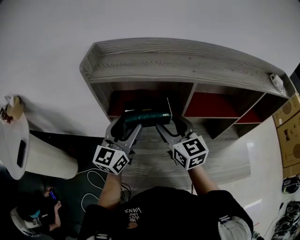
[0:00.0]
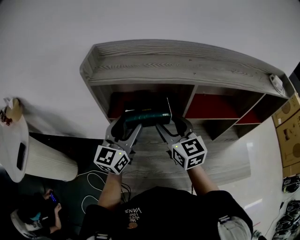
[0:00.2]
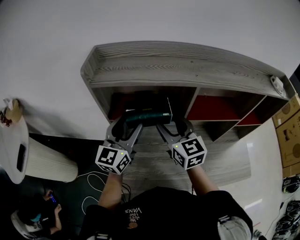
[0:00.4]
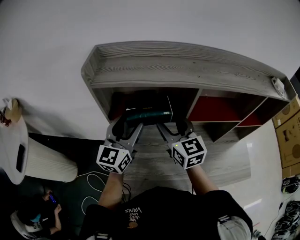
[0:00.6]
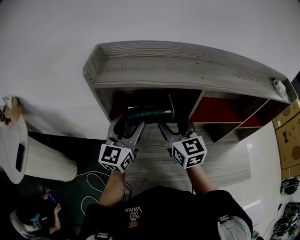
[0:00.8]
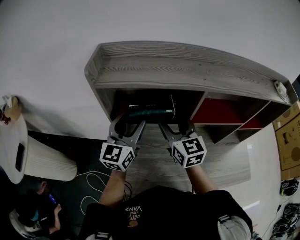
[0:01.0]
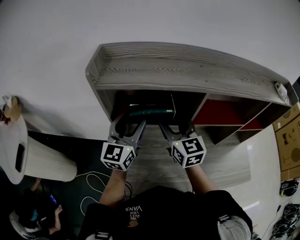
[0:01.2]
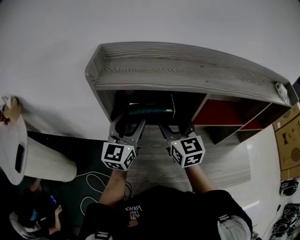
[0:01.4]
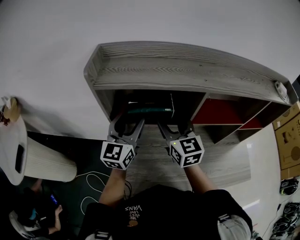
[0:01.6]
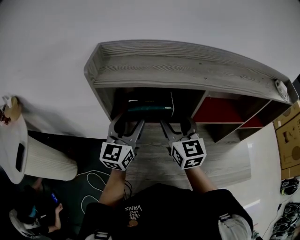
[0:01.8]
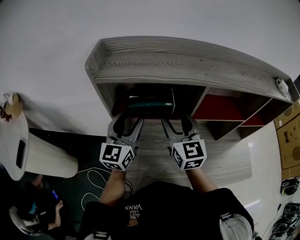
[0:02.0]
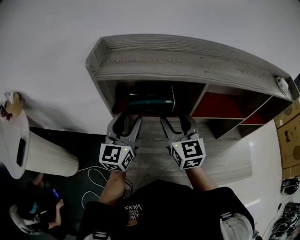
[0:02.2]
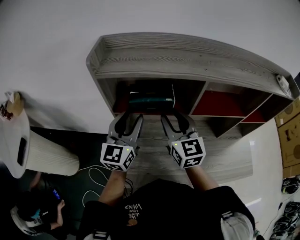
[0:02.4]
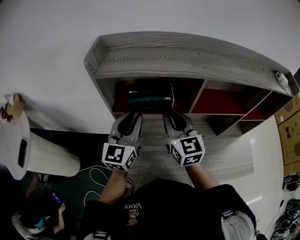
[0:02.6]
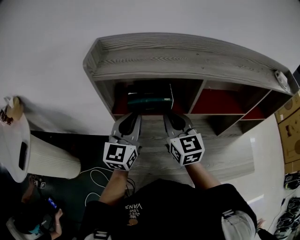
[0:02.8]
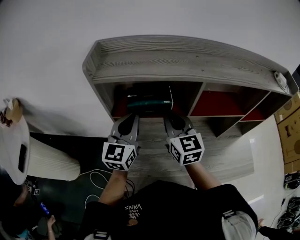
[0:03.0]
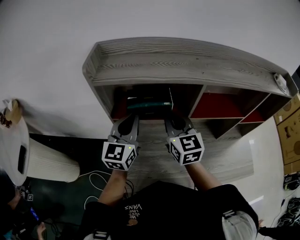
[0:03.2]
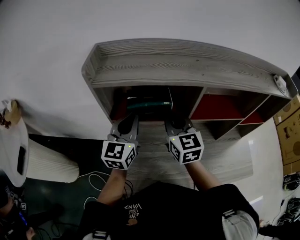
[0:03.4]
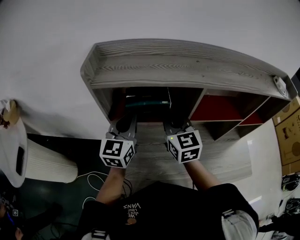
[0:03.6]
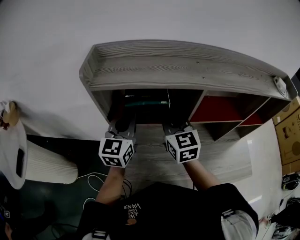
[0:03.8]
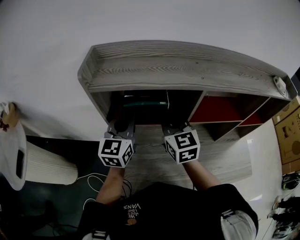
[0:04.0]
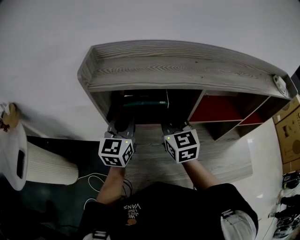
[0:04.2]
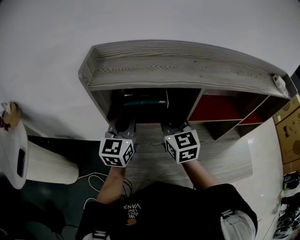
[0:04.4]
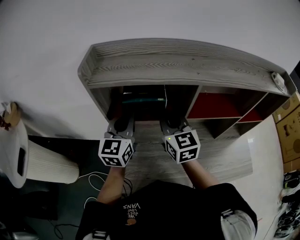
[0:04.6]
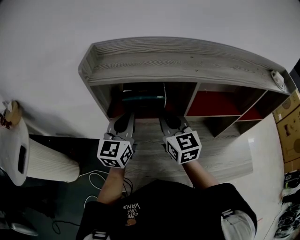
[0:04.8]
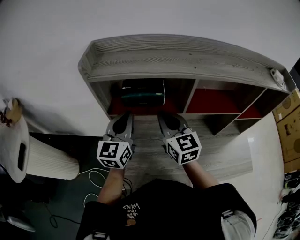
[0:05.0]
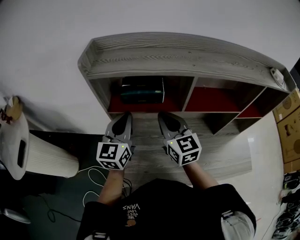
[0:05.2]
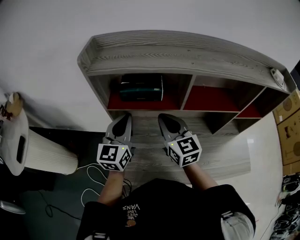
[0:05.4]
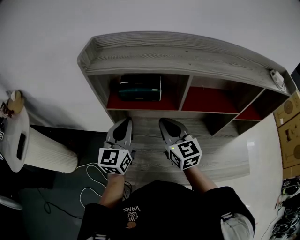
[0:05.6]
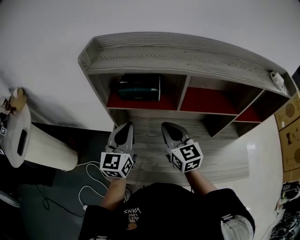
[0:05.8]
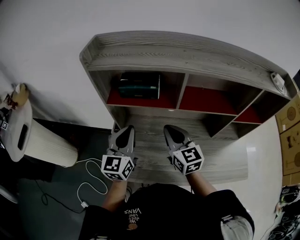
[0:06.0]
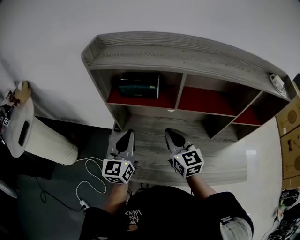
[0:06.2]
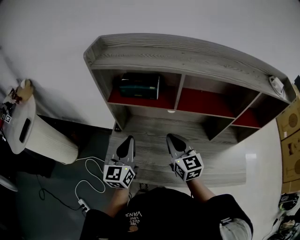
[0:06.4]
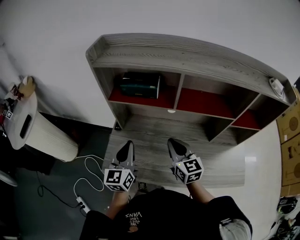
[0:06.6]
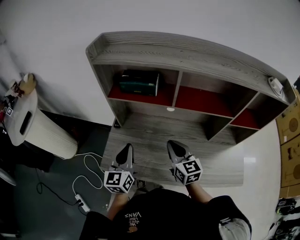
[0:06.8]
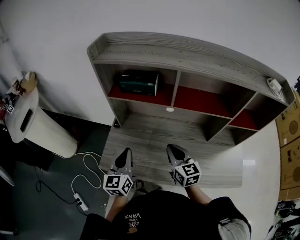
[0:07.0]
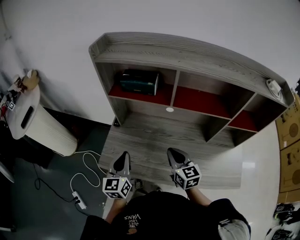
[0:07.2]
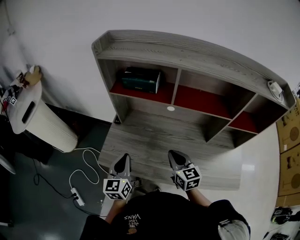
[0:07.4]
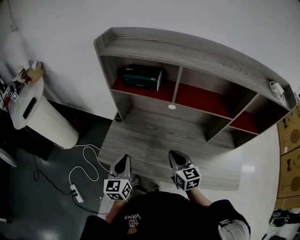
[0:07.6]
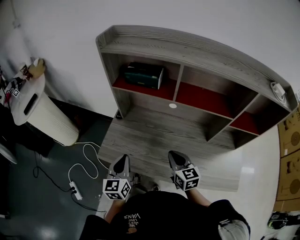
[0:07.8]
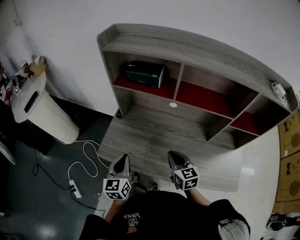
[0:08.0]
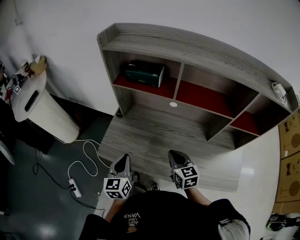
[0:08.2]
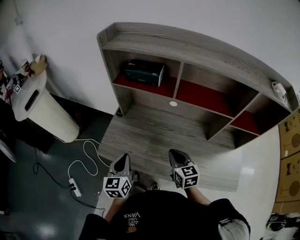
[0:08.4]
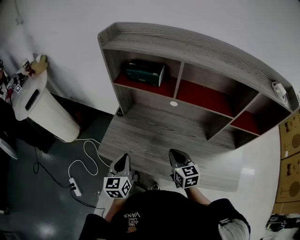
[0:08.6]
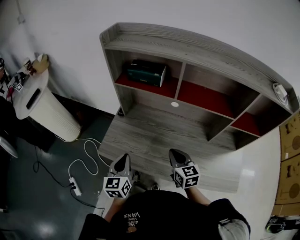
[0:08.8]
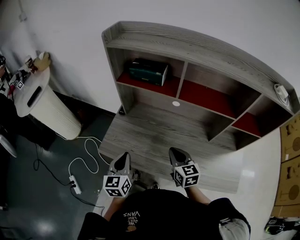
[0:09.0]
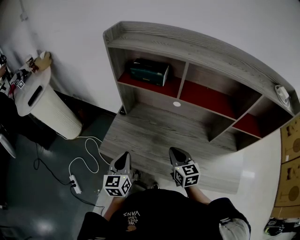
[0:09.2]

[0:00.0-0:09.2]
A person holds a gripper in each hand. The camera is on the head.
0.0 to 1.6 s: The right gripper ends up about 5 cm from where it was, while the left gripper is displaced forward by about 5 cm.
1.6 to 3.0 s: The right gripper closes up; the left gripper closes its fingers.
3.0 to 4.6 s: There are only small adjustments of the grippers.
4.6 to 6.2 s: The right gripper moves backward, downward and to the right, about 15 cm, while the left gripper travels backward by roughly 15 cm.
6.2 to 7.6 s: Both grippers move backward and downward, some 15 cm.
7.6 to 9.2 s: The grippers stay close to where they were, moving slightly.

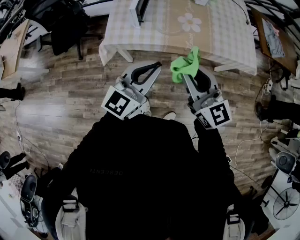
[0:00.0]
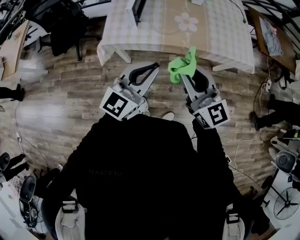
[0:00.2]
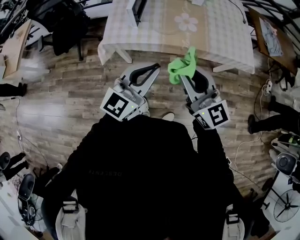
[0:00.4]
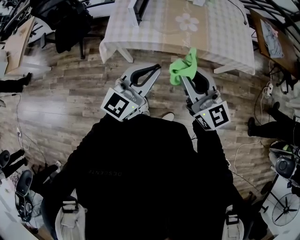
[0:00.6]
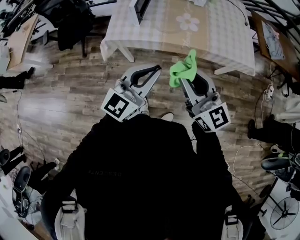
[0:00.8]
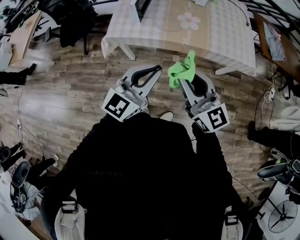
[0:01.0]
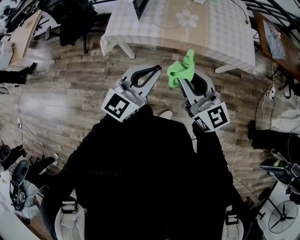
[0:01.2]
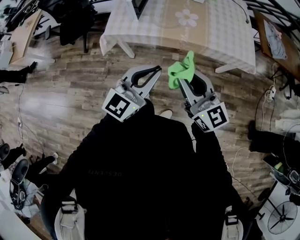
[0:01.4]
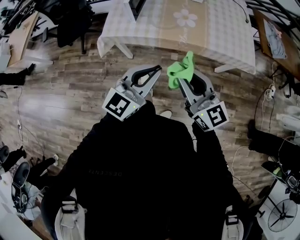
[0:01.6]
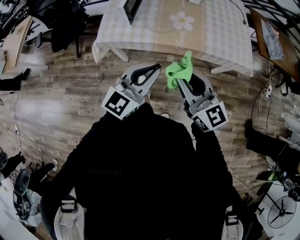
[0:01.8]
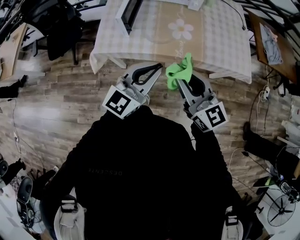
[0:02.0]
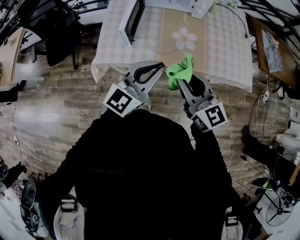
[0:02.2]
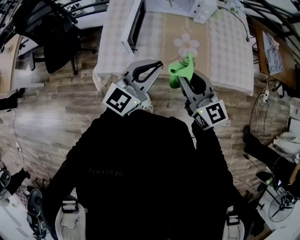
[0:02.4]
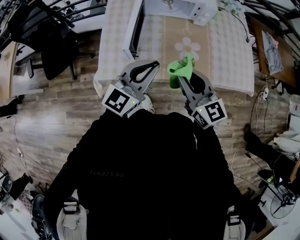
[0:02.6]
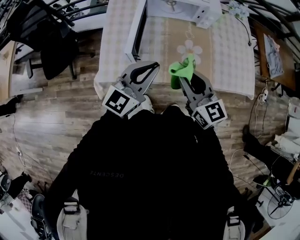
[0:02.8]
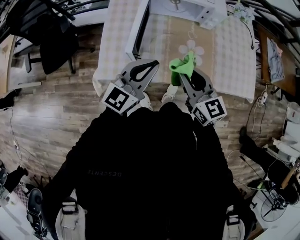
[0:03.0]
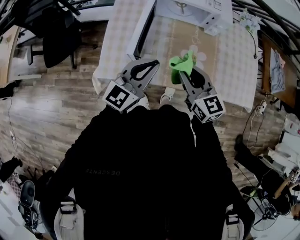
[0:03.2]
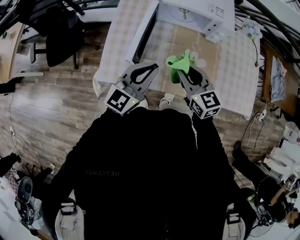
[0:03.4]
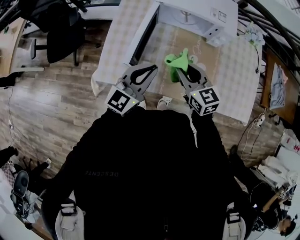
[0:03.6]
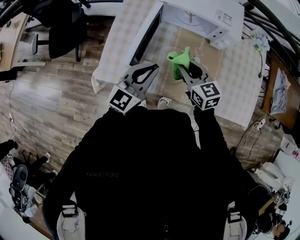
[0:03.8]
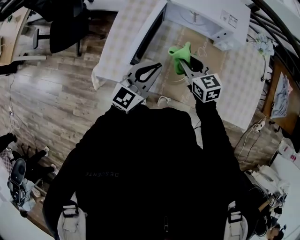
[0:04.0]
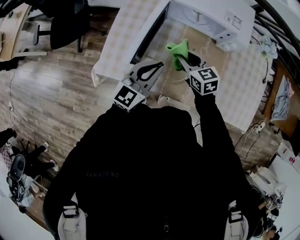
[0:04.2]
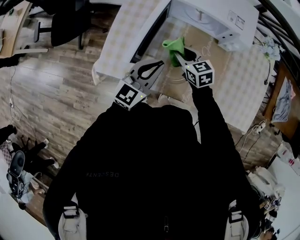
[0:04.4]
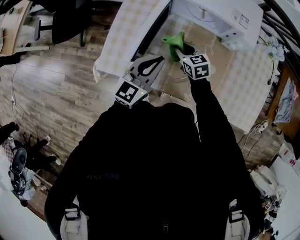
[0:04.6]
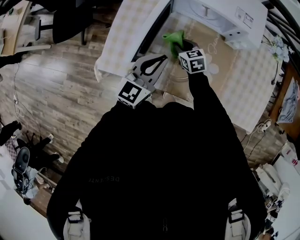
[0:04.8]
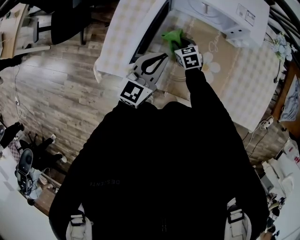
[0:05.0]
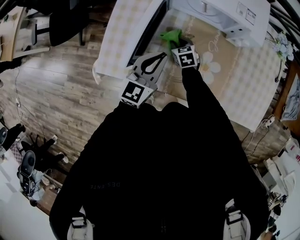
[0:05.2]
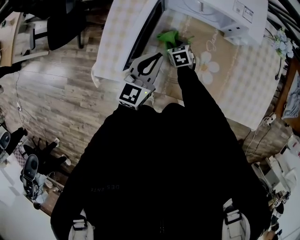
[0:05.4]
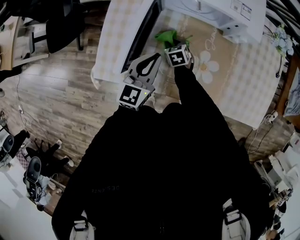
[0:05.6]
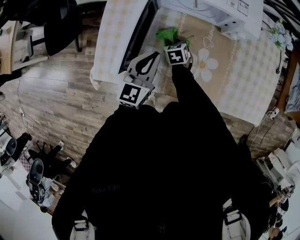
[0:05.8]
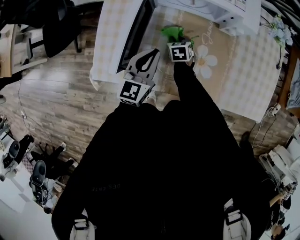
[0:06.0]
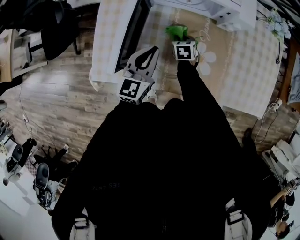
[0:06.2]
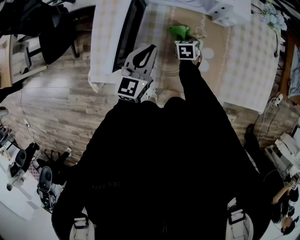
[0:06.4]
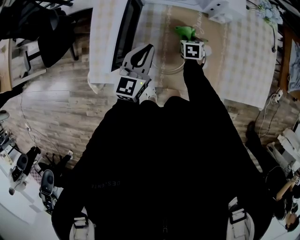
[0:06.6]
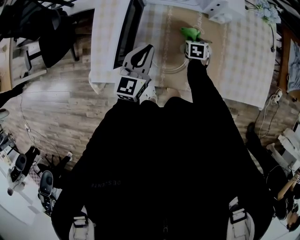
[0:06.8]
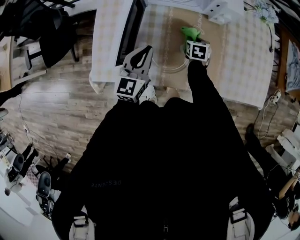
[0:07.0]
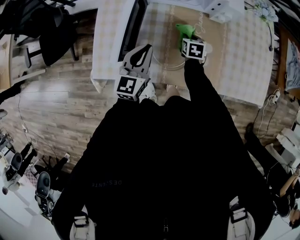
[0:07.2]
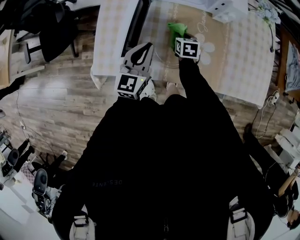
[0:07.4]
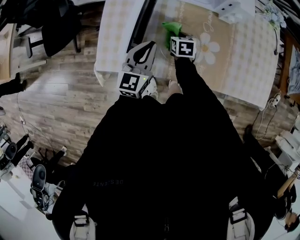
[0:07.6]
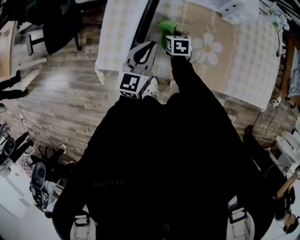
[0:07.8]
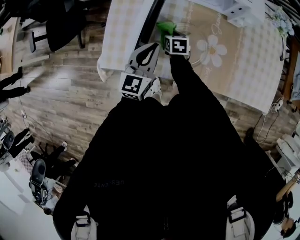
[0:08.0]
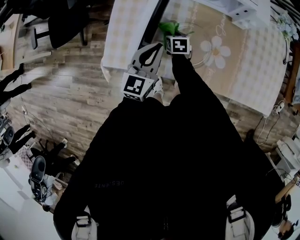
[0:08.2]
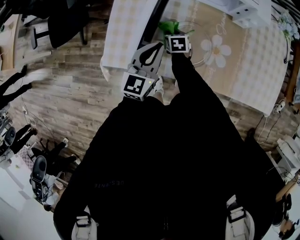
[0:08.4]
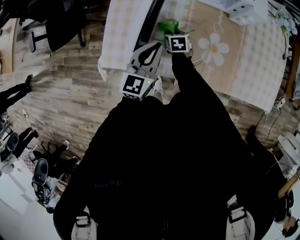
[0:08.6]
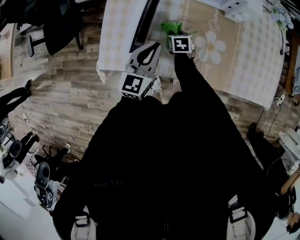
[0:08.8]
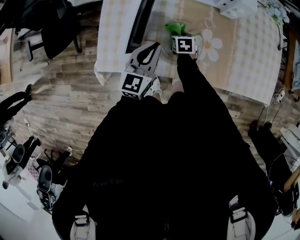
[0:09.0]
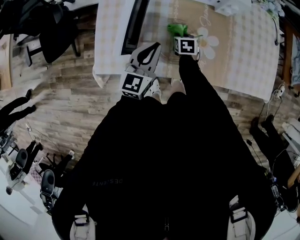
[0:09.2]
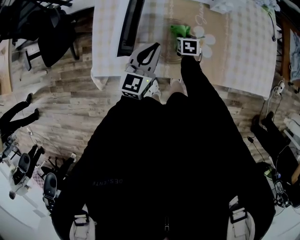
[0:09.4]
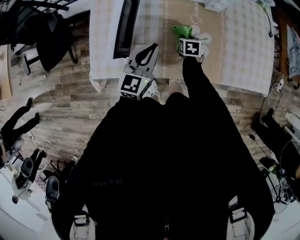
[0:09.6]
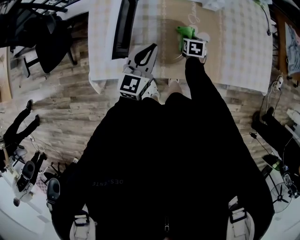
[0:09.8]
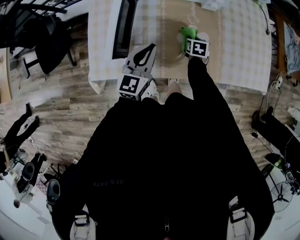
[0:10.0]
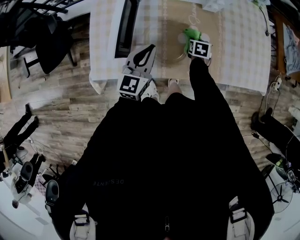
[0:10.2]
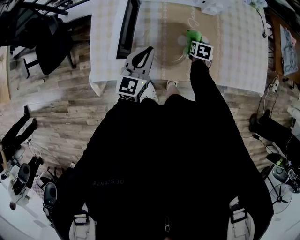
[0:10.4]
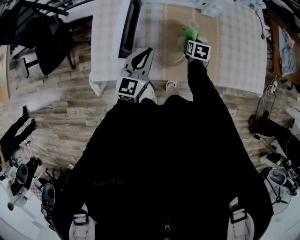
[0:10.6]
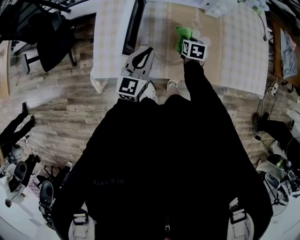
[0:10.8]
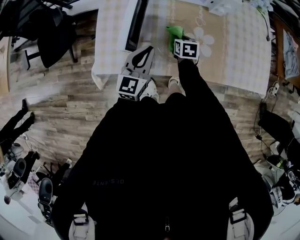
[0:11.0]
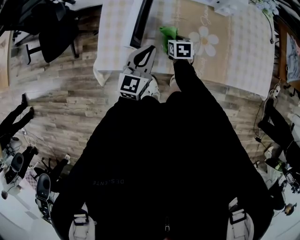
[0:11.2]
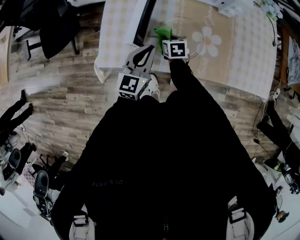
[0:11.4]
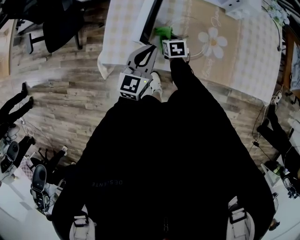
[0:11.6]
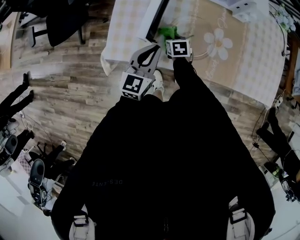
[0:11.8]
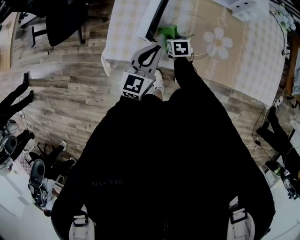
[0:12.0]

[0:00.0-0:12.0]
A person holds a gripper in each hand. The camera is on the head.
0.0 to 1.6 s: Both grippers travel together to the right and backward, roughly 10 cm.
1.6 to 3.0 s: Both grippers move forward, approximately 35 cm.
3.0 to 4.4 s: The right gripper goes some 25 cm forward and downward, and turns by approximately 30 degrees, while the left gripper is displaced forward and downward by about 15 cm.
4.4 to 6.0 s: The right gripper shifts roughly 20 cm downward, and turns by approximately 30 degrees. The left gripper is displaced downward and forward by approximately 10 cm.
6.0 to 7.6 s: The two grippers go approximately 5 cm backward. The right gripper reaches approximately 15 cm to the right, then returns.
7.6 to 9.0 s: The right gripper goes to the left and returns, roughly 10 cm each way.
9.0 to 10.4 s: The right gripper shifts approximately 15 cm to the right.
10.4 to 12.0 s: The left gripper moves to the left and backward, some 10 cm; the right gripper heads to the left, covering approximately 25 cm, and changes its angle by approximately 30 degrees.

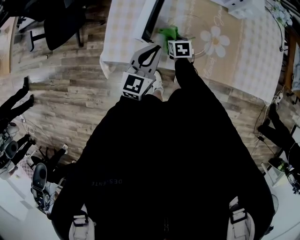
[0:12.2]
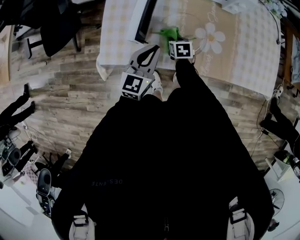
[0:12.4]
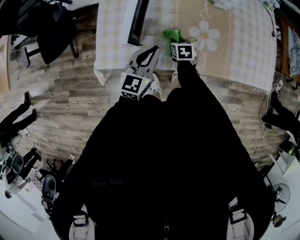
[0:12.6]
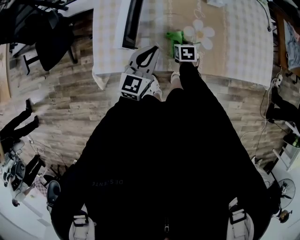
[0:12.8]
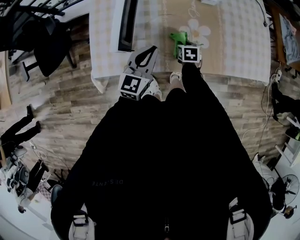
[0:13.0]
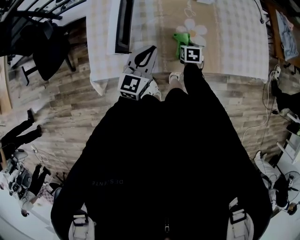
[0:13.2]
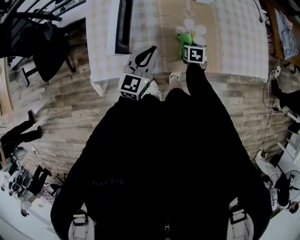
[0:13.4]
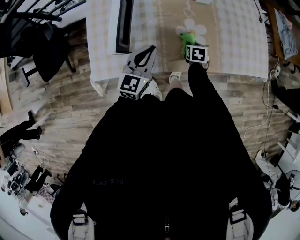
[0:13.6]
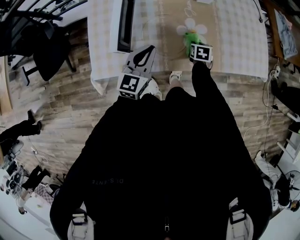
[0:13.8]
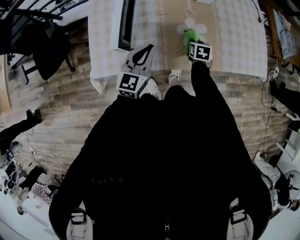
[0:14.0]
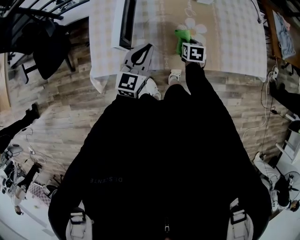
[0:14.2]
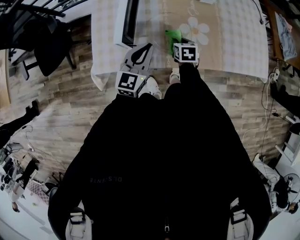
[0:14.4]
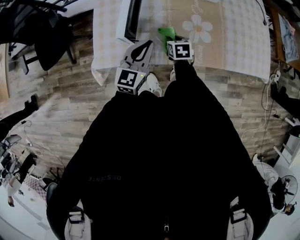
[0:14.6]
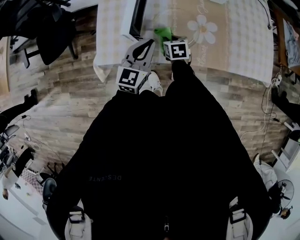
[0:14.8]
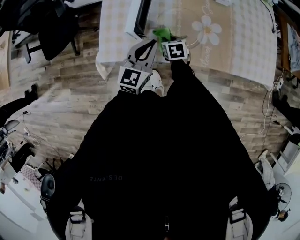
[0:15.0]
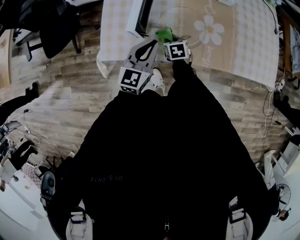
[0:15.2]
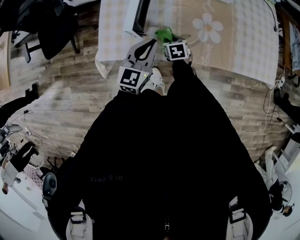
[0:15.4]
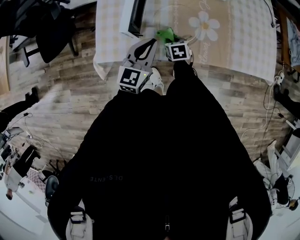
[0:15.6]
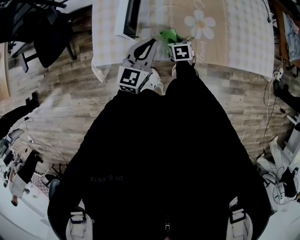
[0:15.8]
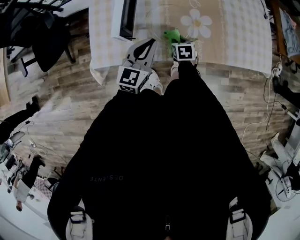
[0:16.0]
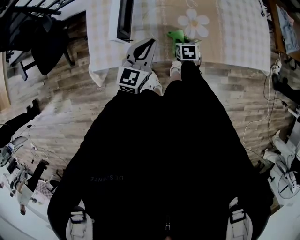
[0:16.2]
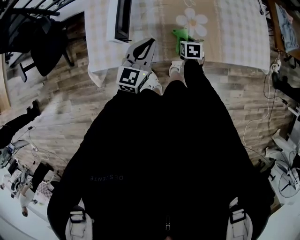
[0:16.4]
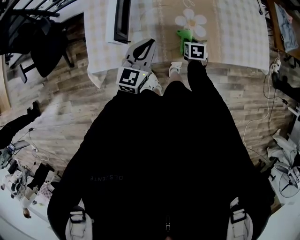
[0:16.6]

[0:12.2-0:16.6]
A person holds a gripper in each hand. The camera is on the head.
12.2 to 13.6 s: The right gripper shifts approximately 20 cm to the right, and changes its angle by some 20 degrees. The left gripper is displaced to the right by roughly 5 cm.
13.6 to 15.2 s: The left gripper travels to the left by approximately 5 cm; the right gripper moves to the left, roughly 20 cm, and changes its angle by some 20 degrees.
15.2 to 16.6 s: The left gripper shifts approximately 5 cm to the right, while the right gripper goes roughly 20 cm to the right.
